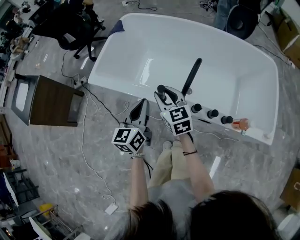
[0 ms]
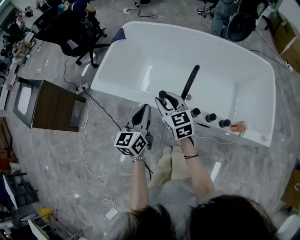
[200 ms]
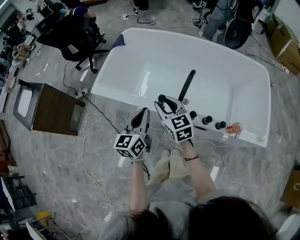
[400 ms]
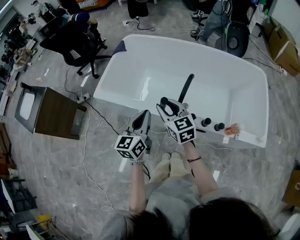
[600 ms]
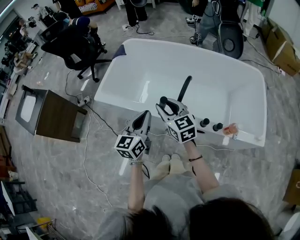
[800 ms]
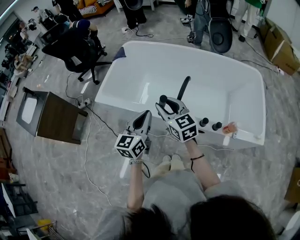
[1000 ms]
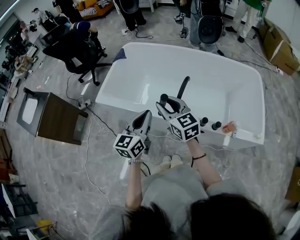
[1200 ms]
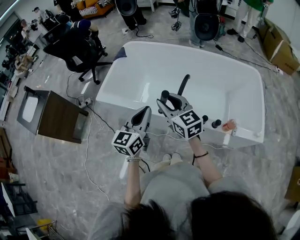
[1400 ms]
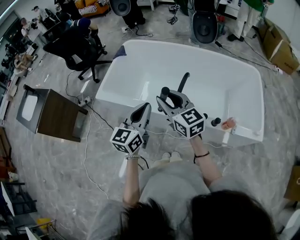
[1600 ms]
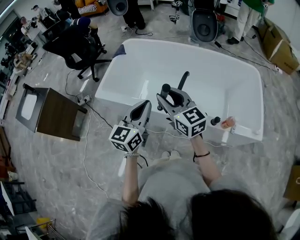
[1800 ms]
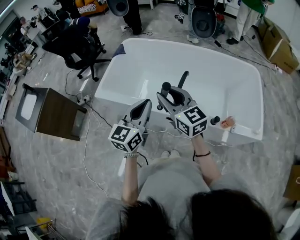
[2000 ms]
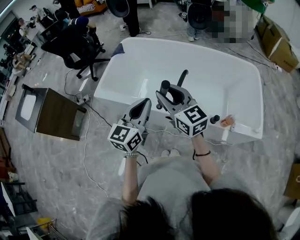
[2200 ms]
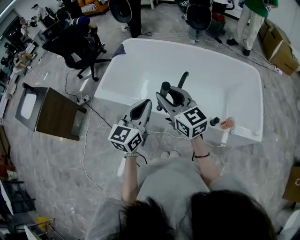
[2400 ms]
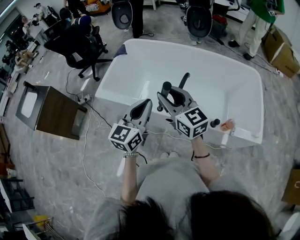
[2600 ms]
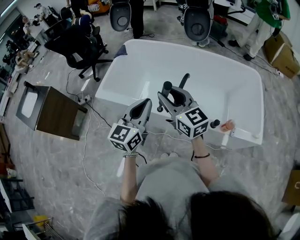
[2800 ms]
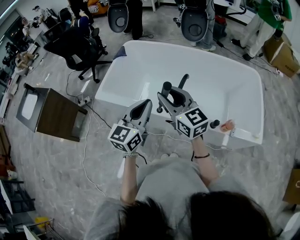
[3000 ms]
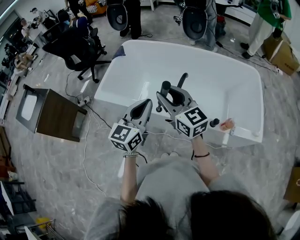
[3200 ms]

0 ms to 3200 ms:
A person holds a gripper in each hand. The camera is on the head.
0 ms to 1600 ms: Both grippers move upward and backward, roughly 20 cm.
1600 ms to 3200 ms: The grippers move only a little.

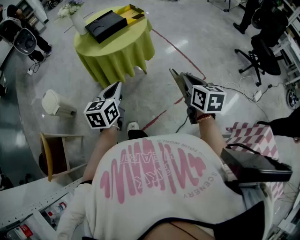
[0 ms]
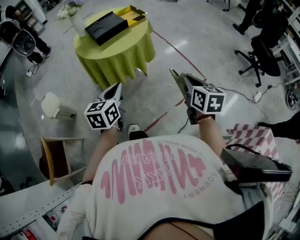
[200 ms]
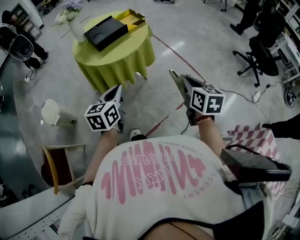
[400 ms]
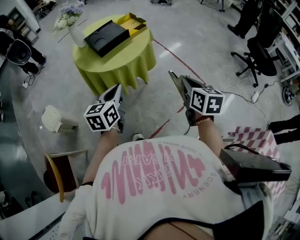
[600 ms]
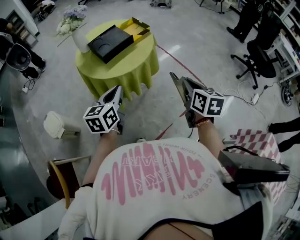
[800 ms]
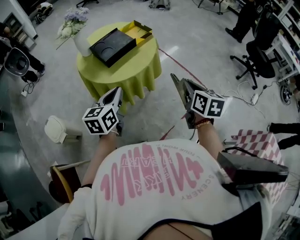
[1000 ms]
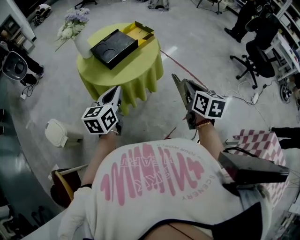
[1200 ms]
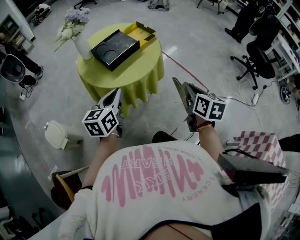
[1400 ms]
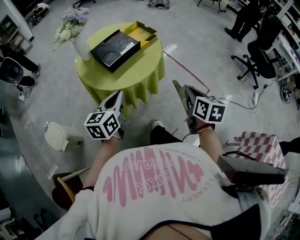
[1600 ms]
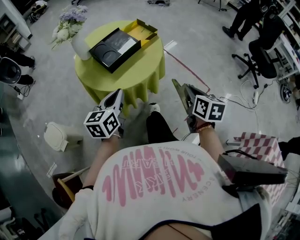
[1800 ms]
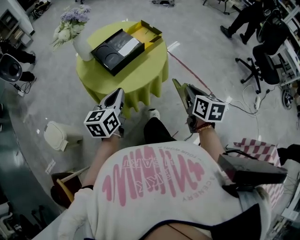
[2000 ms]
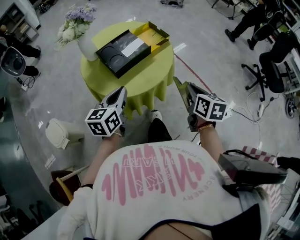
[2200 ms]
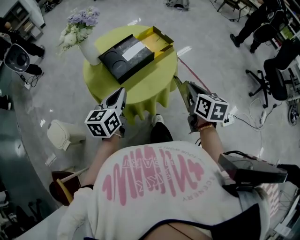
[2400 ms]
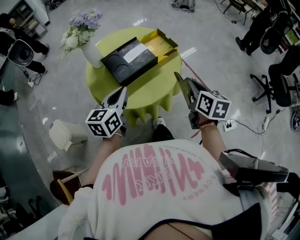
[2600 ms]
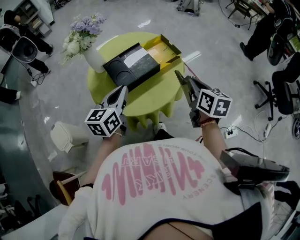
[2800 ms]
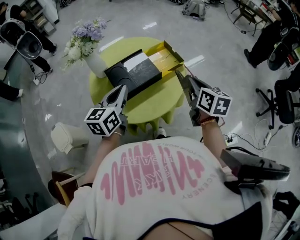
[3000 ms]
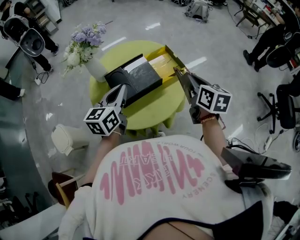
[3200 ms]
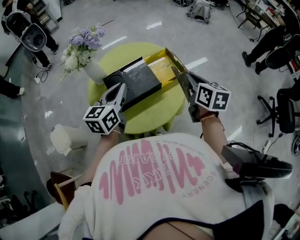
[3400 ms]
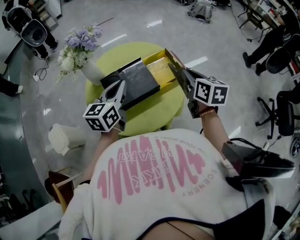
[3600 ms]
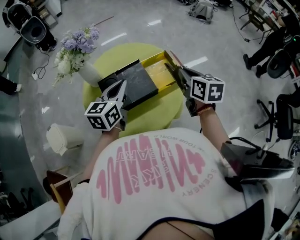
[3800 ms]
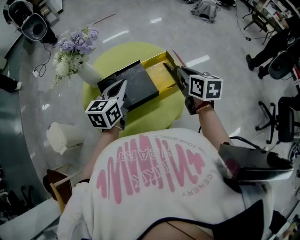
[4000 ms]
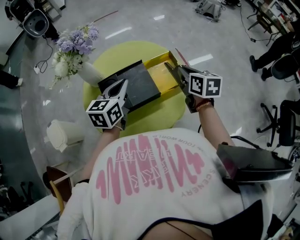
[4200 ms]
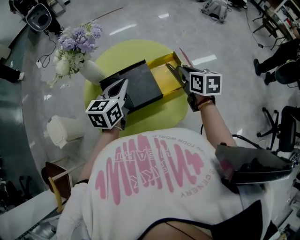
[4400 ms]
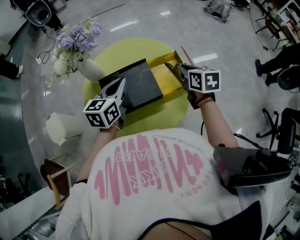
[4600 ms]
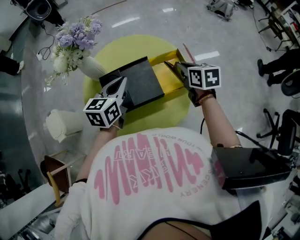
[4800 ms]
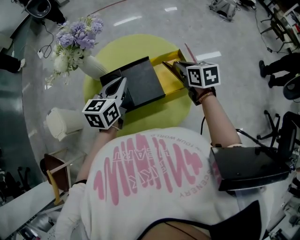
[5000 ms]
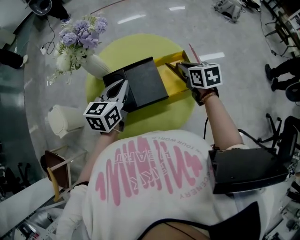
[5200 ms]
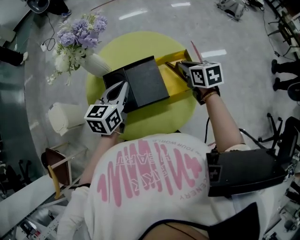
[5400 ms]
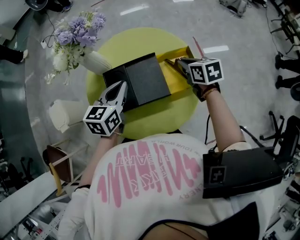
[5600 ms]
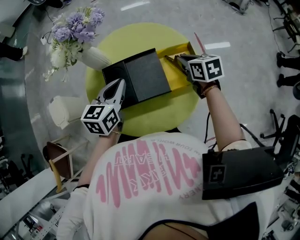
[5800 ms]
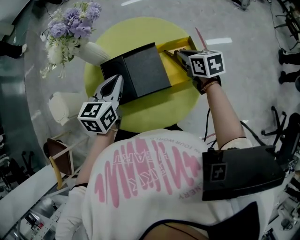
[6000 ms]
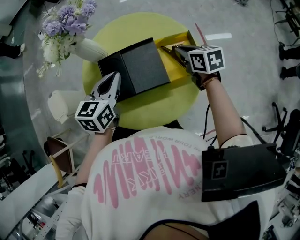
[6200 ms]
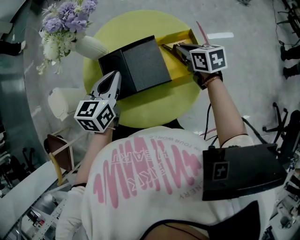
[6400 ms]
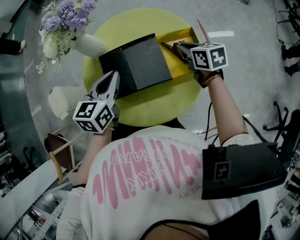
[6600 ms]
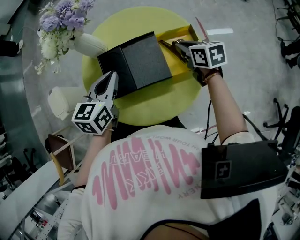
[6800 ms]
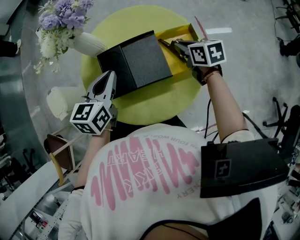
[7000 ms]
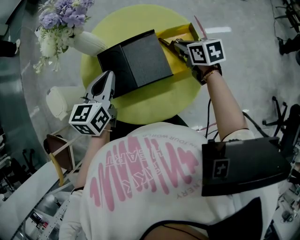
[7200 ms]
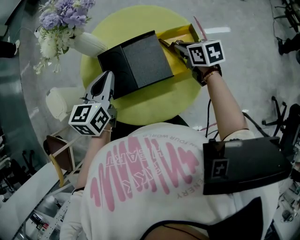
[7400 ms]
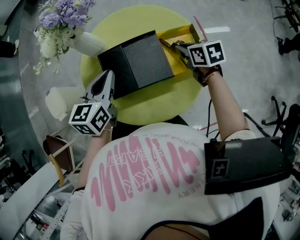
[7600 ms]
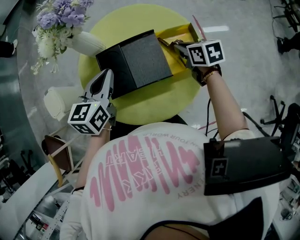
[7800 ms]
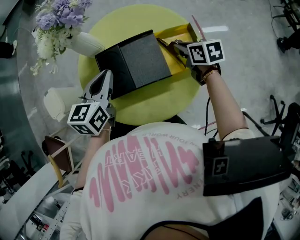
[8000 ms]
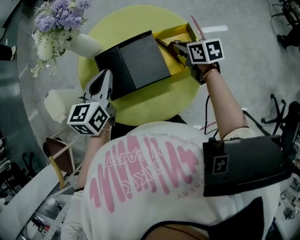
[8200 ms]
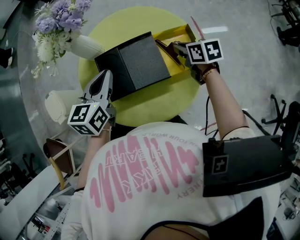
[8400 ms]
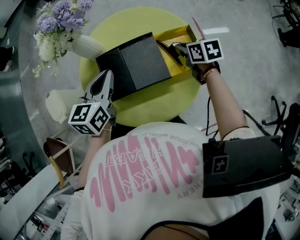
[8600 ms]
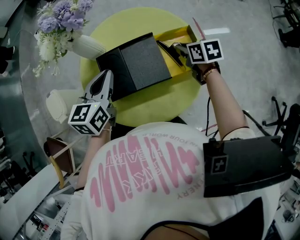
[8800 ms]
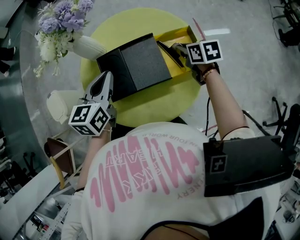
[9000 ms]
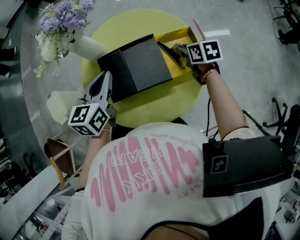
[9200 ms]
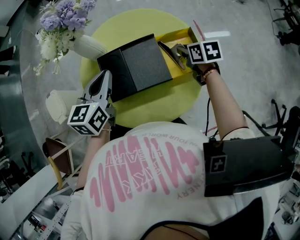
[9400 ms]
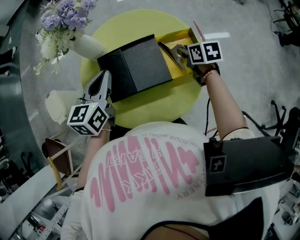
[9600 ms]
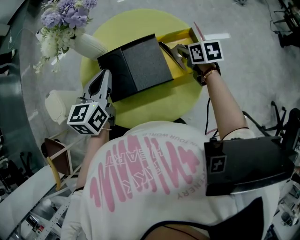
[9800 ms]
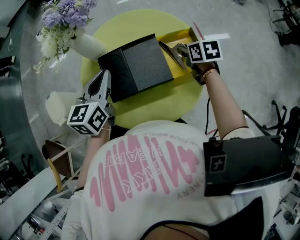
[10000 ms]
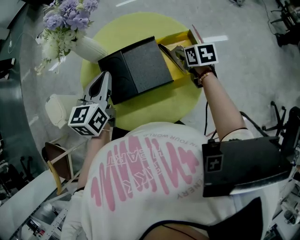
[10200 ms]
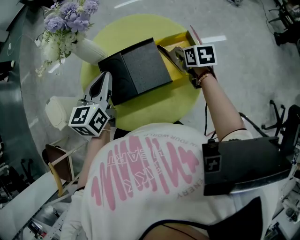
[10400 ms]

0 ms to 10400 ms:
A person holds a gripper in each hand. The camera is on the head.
0 ms to 1400 ms: The right gripper travels to the left and forward by approximately 20 cm, while the left gripper heads forward and to the left, covering roughly 25 cm.
1400 ms to 3000 ms: The grippers both shift forward by some 30 cm.
3000 ms to 4400 ms: The two grippers go approximately 20 cm forward. The right gripper turns by roughly 20 degrees.
4400 ms to 6000 ms: The left gripper ends up some 5 cm from where it was. Meanwhile the right gripper shifts roughly 10 cm downward and forward, and rotates some 20 degrees.
6000 ms to 10400 ms: The grippers stay close to where they were, moving slightly.

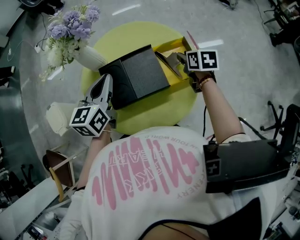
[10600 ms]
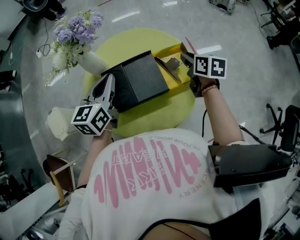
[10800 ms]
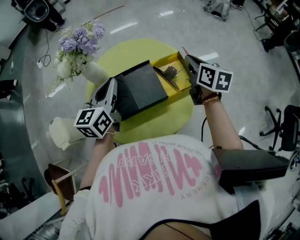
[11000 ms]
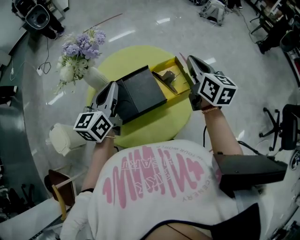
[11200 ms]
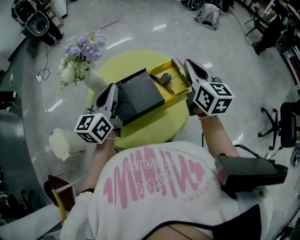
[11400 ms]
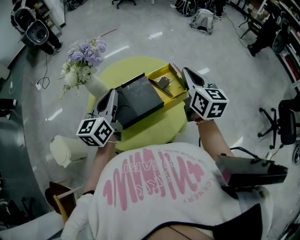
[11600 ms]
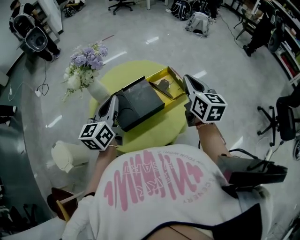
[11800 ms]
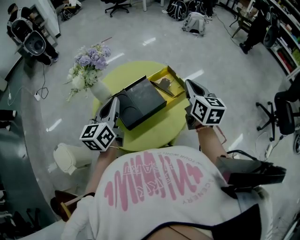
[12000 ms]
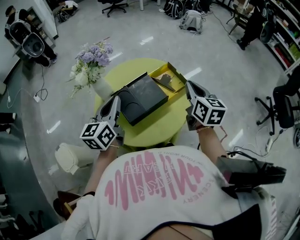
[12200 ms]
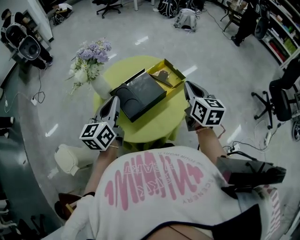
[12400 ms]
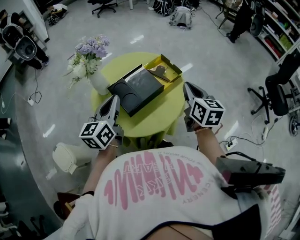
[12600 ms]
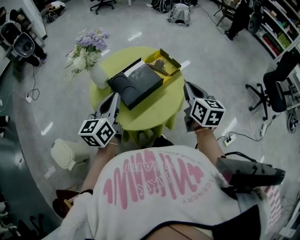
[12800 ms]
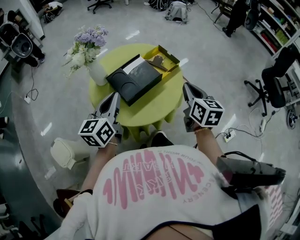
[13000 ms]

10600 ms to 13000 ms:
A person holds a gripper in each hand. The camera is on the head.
10600 ms to 11800 ms: The right gripper travels upward and backward by approximately 25 cm, tilts its fingers roughly 40 degrees upward, and closes, while the left gripper is displaced upward by some 10 cm.
11800 ms to 13000 ms: The left gripper is displaced backward by some 15 cm, while the right gripper travels backward by roughly 20 cm.

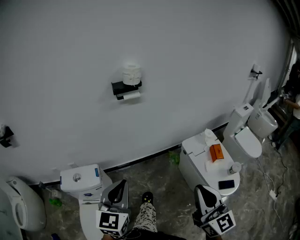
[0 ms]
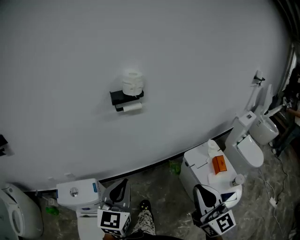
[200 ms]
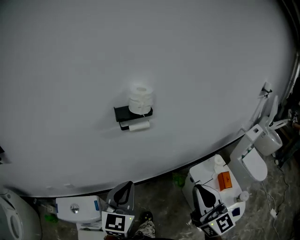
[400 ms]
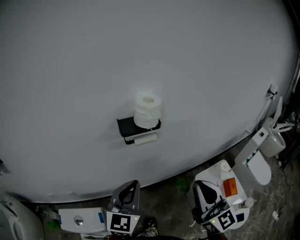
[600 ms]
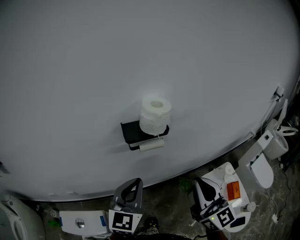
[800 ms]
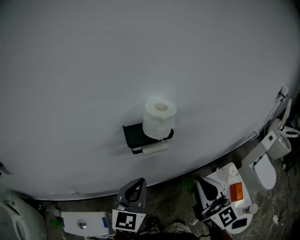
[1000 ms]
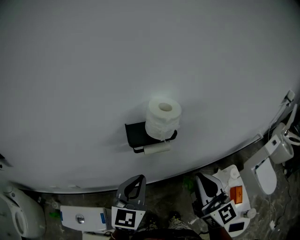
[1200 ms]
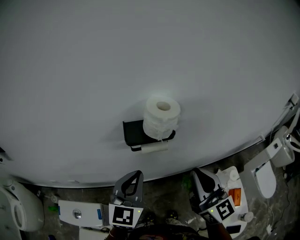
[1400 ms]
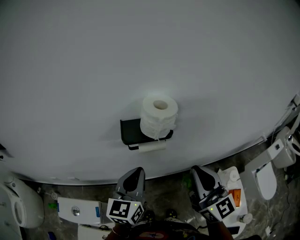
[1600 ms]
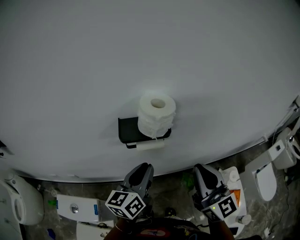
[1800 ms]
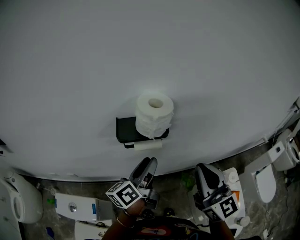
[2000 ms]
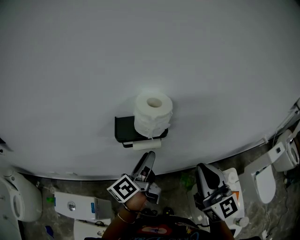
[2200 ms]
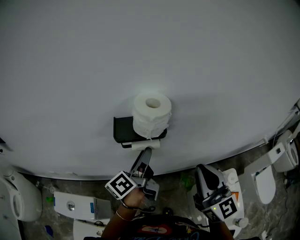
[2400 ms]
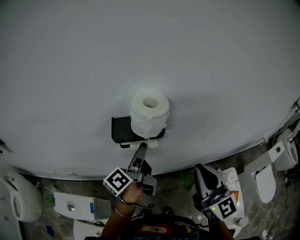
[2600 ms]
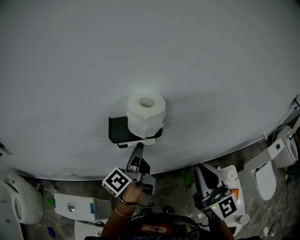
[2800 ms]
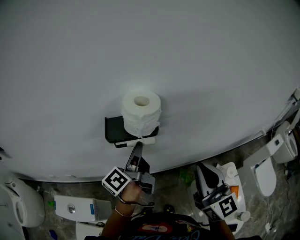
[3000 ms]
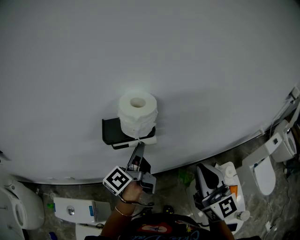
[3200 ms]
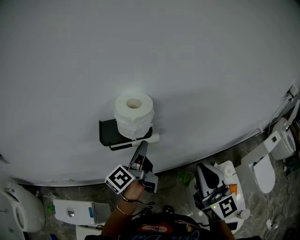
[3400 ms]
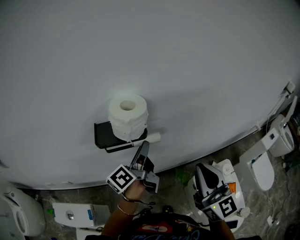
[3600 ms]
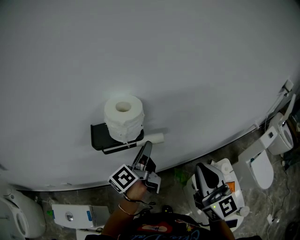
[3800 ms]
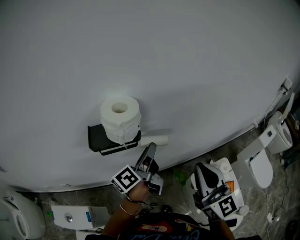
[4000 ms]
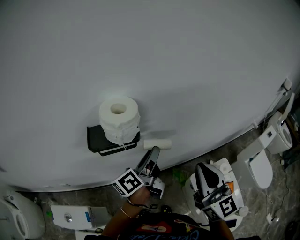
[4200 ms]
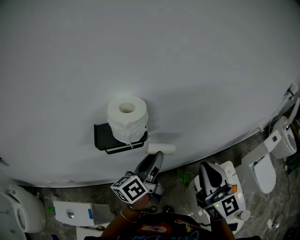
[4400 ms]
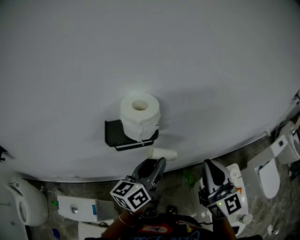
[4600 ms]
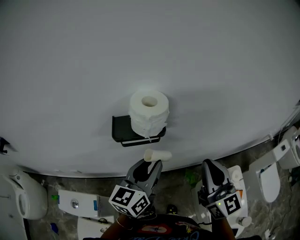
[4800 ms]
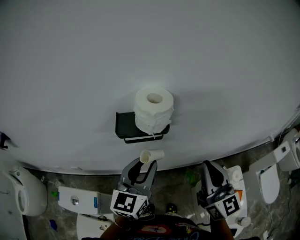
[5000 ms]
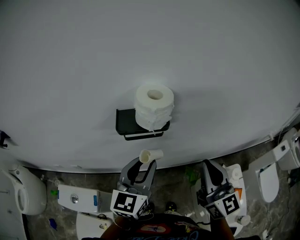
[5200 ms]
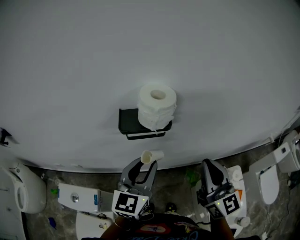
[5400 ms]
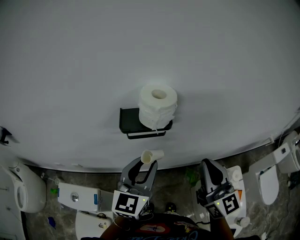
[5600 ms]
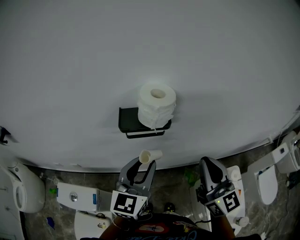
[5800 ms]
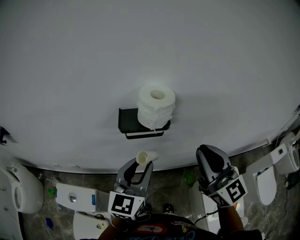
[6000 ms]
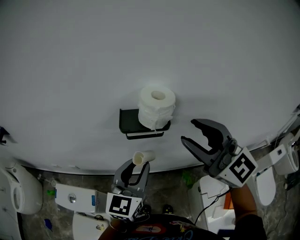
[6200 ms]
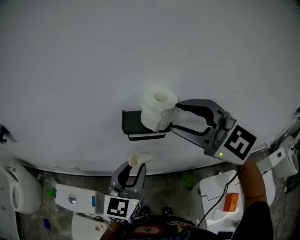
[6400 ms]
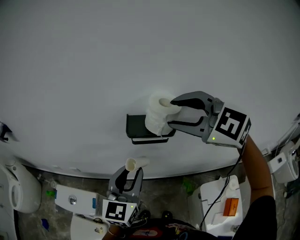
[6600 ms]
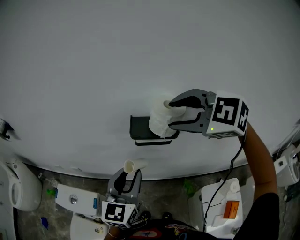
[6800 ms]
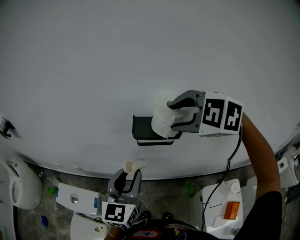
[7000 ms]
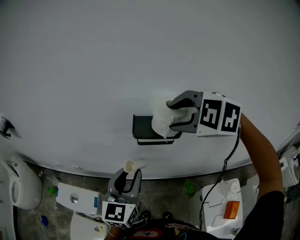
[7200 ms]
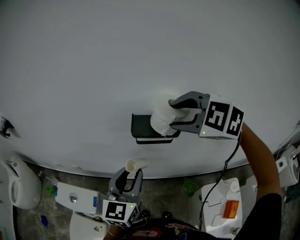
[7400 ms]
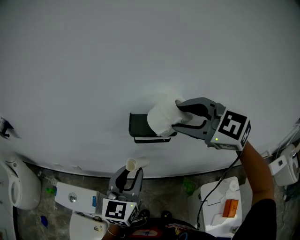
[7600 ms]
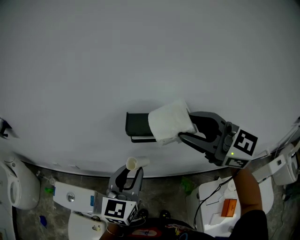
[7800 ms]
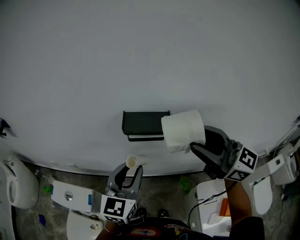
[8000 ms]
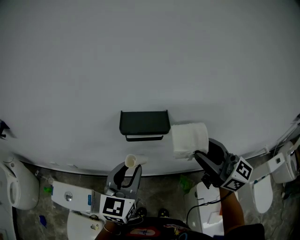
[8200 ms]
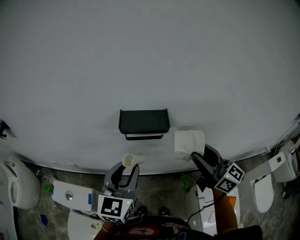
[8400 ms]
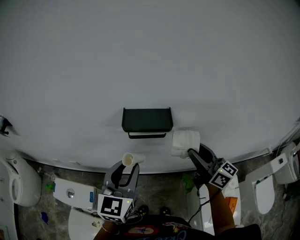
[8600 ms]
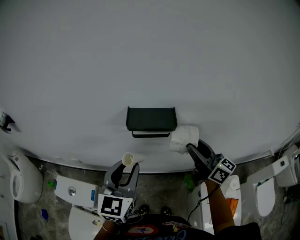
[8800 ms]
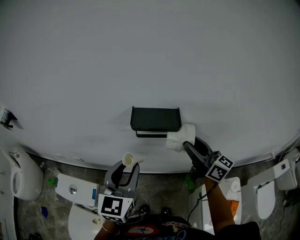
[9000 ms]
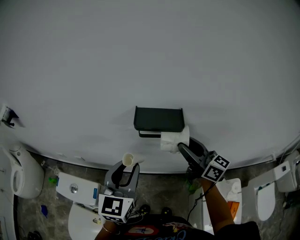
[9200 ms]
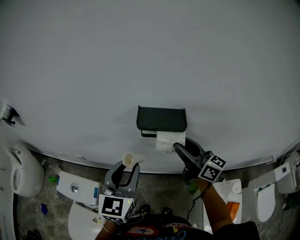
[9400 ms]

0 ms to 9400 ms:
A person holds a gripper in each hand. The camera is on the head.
0 ms to 1600 ms: Both grippers are carried forward, approximately 40 cm.
1600 ms to 3200 ms: The right gripper travels to the right by approximately 5 cm. The left gripper goes roughly 10 cm forward, rotates around the line of its fingers by roughly 60 degrees, counterclockwise from behind, and opens its fingers.
3200 ms to 4800 ms: The left gripper is displaced backward by approximately 5 cm, travels to the right and back again, roughly 10 cm each way, and rolls clockwise, seen from behind, by roughly 50 degrees.
4800 ms to 6200 ms: The left gripper shifts approximately 5 cm to the left, and rotates some 20 degrees; the right gripper moves upward and to the left, roughly 15 cm, changes its angle by about 40 degrees, and opens up.
6200 ms to 7800 ms: The right gripper reaches about 10 cm forward, then returns.
7800 ms to 9400 ms: The right gripper shifts roughly 15 cm downward, and swivels about 40 degrees.
